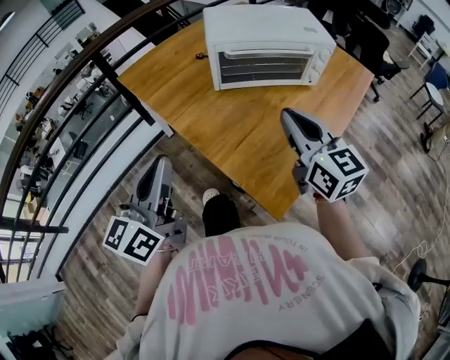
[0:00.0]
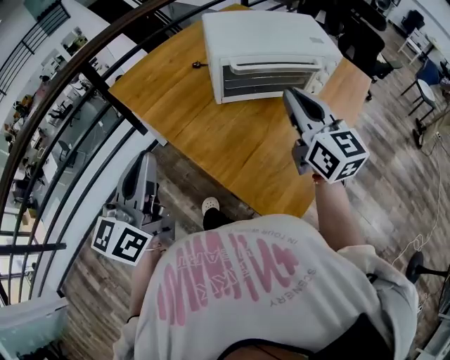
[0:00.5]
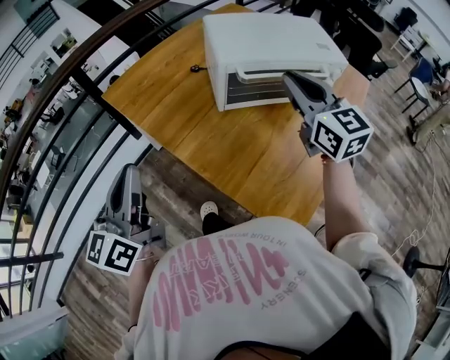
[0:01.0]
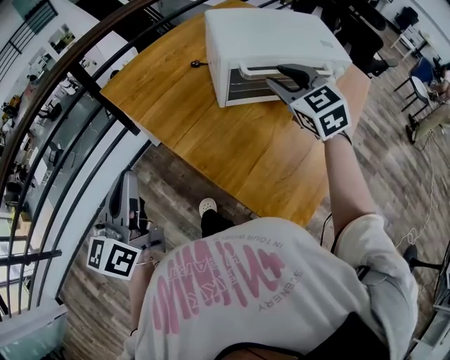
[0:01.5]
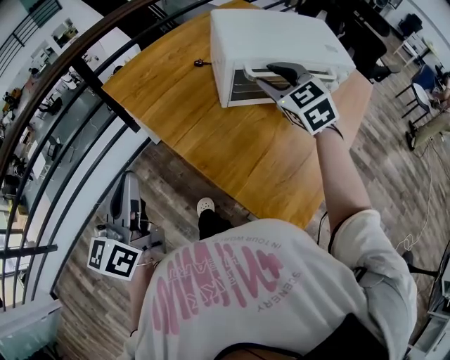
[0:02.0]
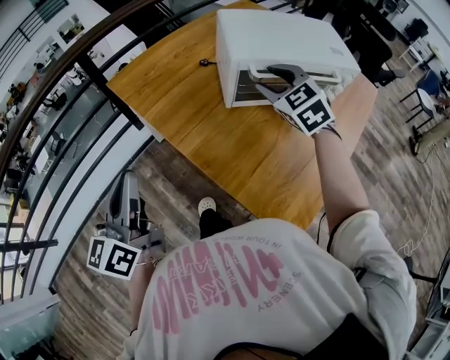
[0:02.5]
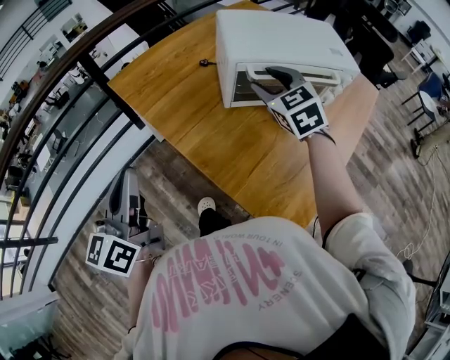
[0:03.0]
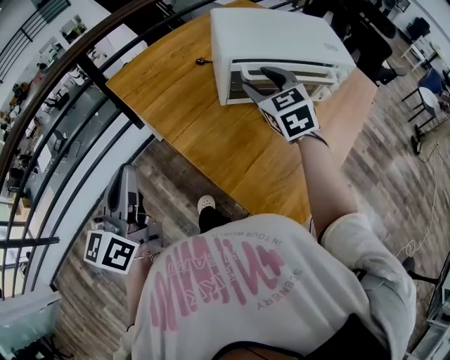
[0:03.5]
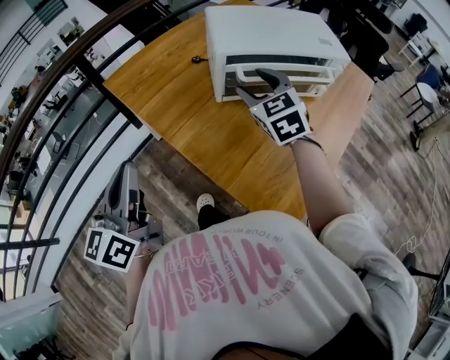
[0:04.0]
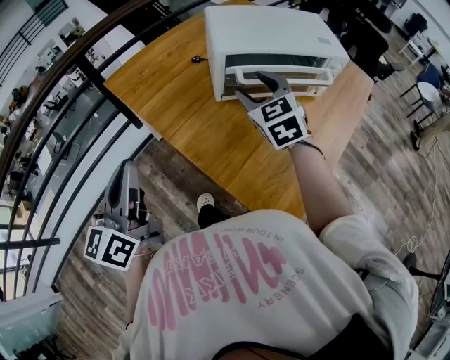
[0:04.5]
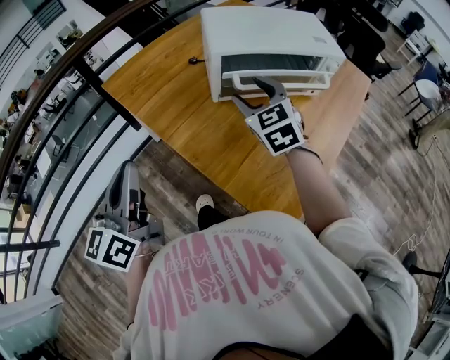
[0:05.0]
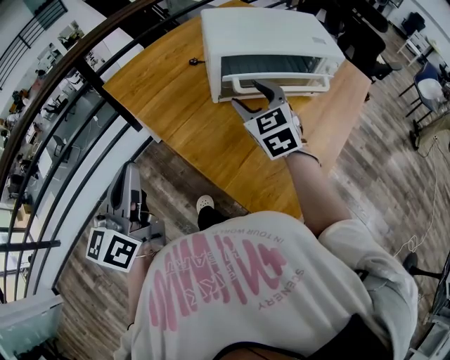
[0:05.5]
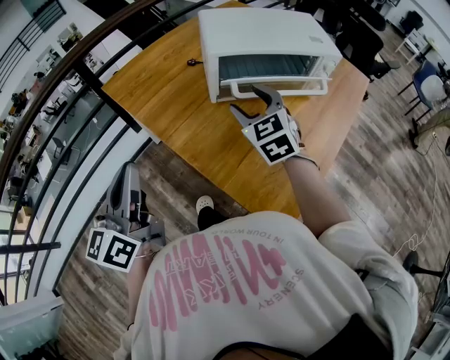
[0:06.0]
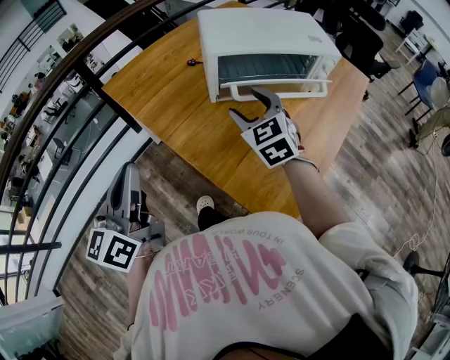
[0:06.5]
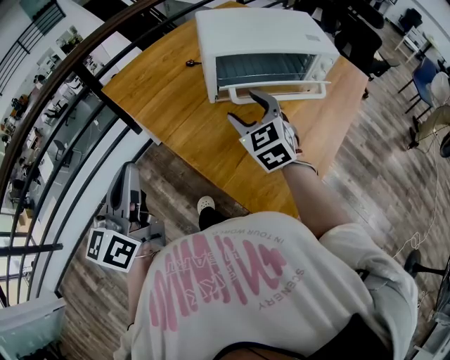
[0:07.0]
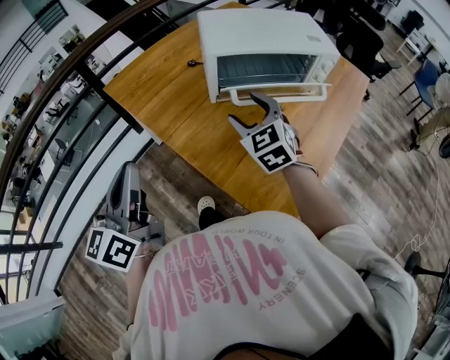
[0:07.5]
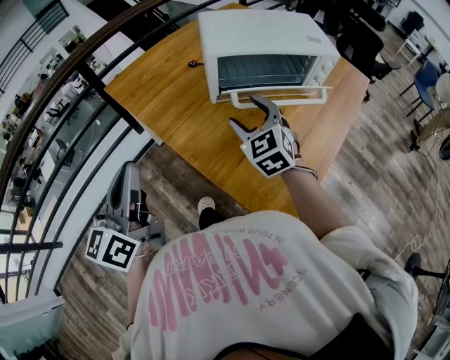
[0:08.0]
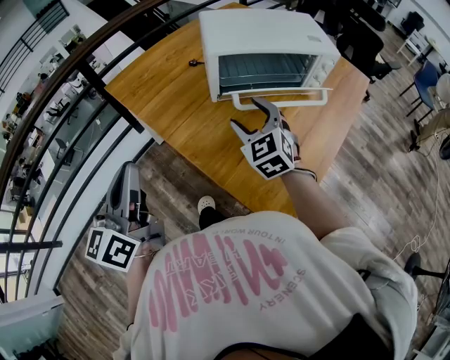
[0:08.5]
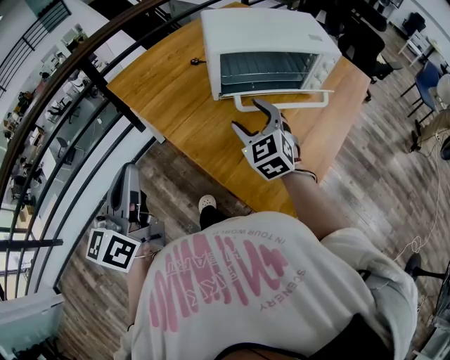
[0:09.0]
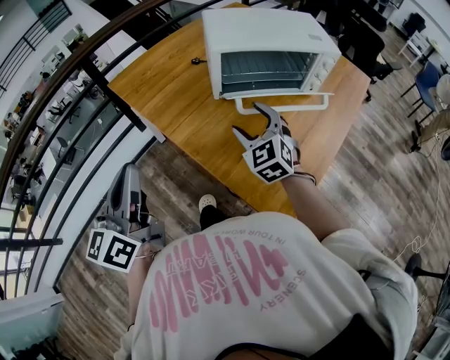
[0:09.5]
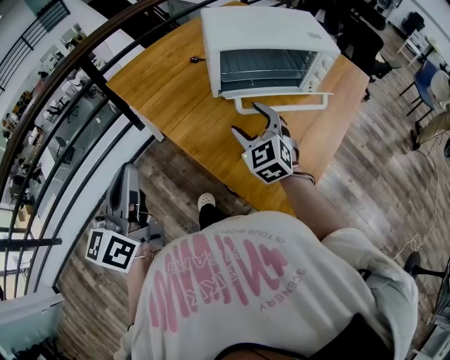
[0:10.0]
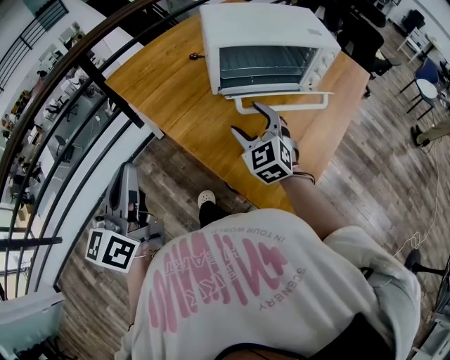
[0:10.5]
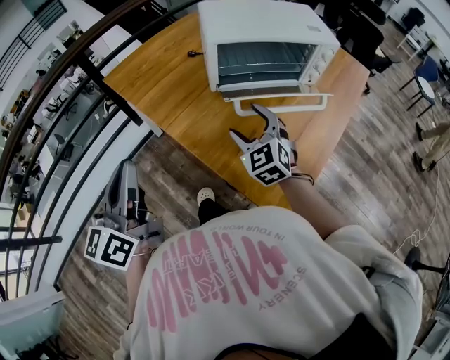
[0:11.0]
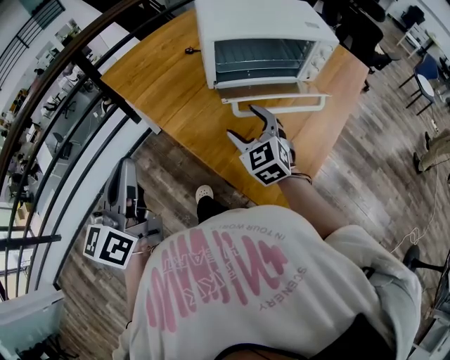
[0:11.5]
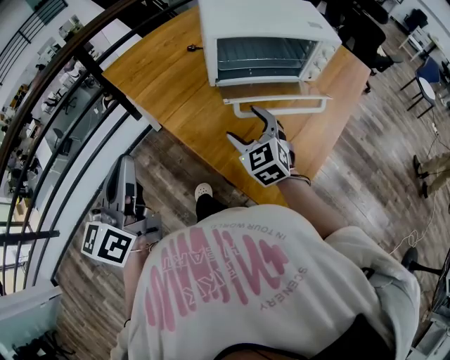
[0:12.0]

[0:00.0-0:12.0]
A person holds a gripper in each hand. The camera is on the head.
0:00.0 to 0:02.0: The right gripper goes approximately 25 cm forward, and changes its angle by roughly 40 degrees. Meanwhile the left gripper heads to the left and forward, covering roughly 15 cm.
0:02.0 to 0:04.0: There are only small adjustments of the grippers.
0:04.0 to 0:06.0: The grippers move only a little.
0:06.0 to 0:08.0: The grippers move only a little.
0:08.0 to 0:10.0: The grippers stay close to where they were, moving slightly.
0:10.0 to 0:12.0: The grippers make only small movements.

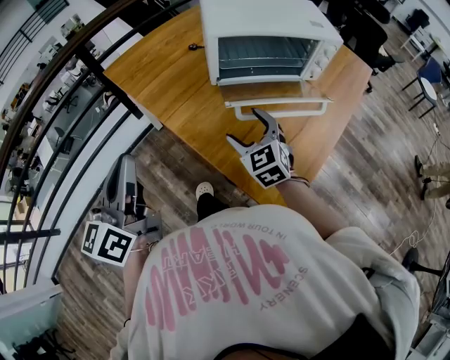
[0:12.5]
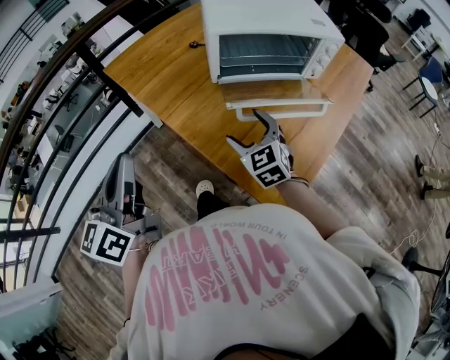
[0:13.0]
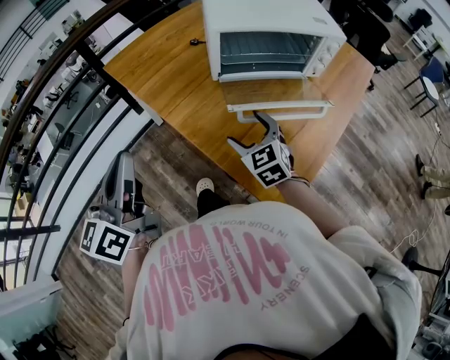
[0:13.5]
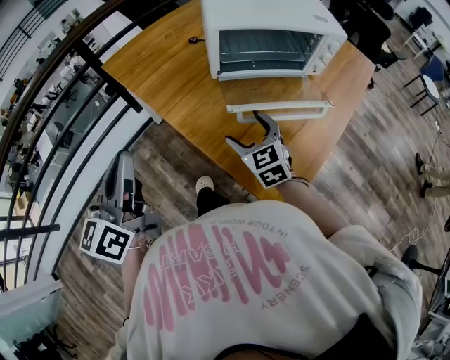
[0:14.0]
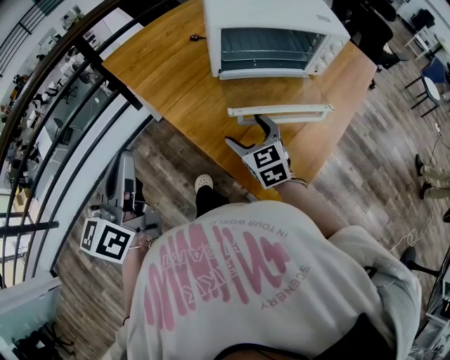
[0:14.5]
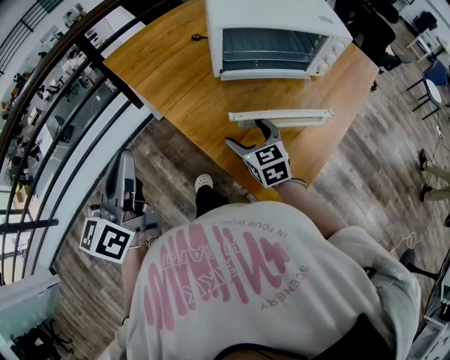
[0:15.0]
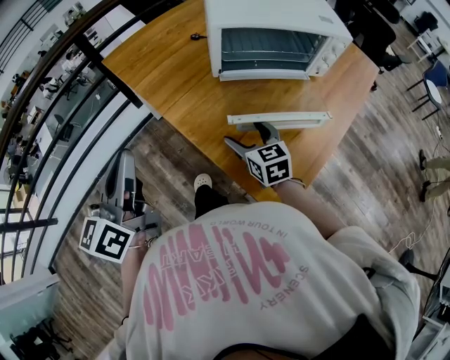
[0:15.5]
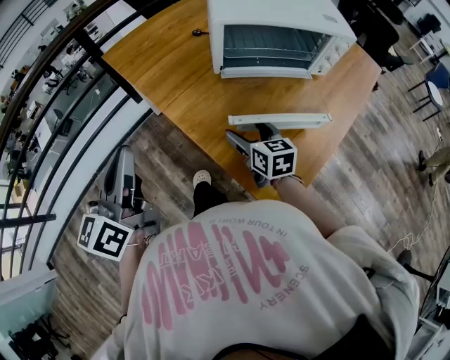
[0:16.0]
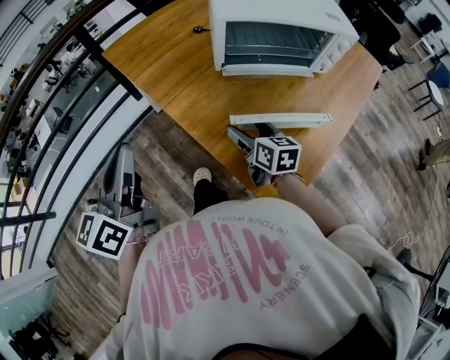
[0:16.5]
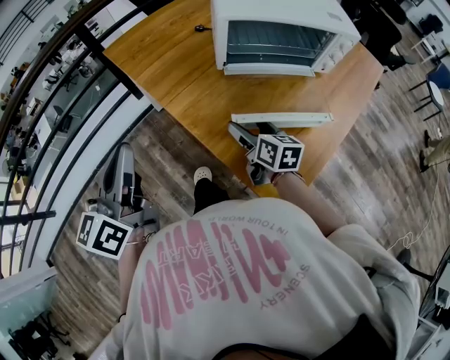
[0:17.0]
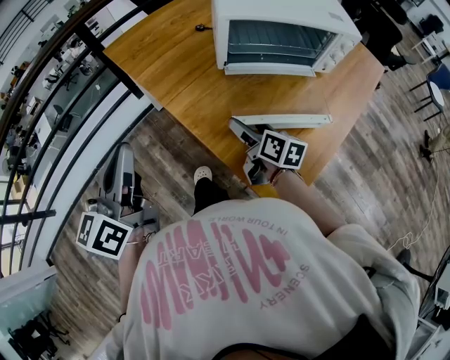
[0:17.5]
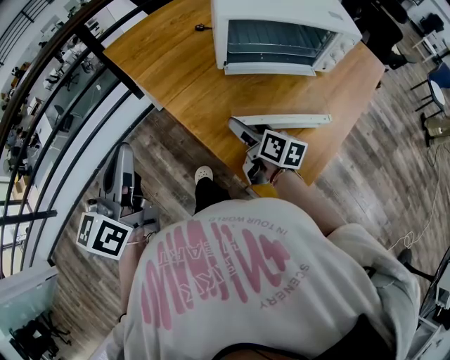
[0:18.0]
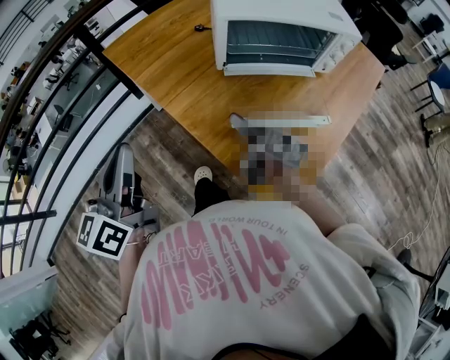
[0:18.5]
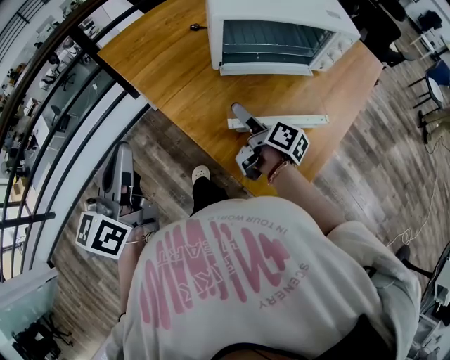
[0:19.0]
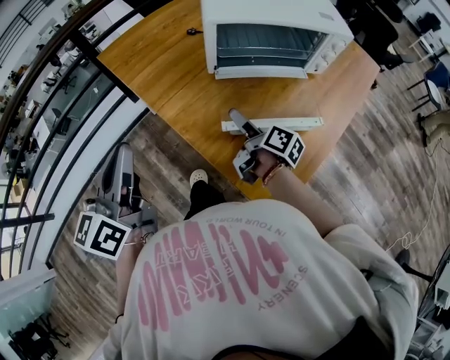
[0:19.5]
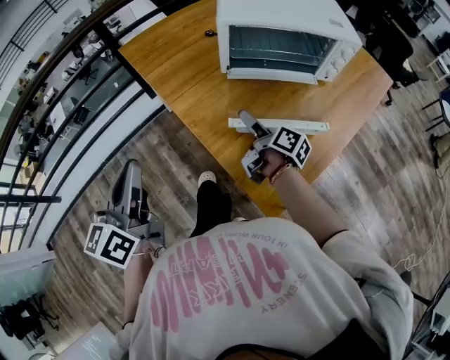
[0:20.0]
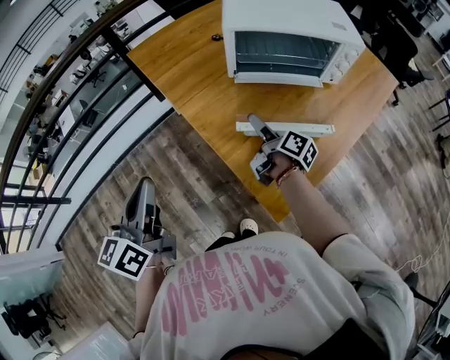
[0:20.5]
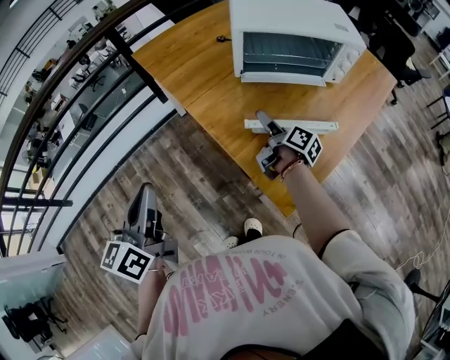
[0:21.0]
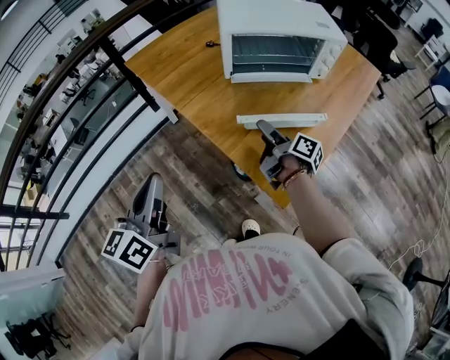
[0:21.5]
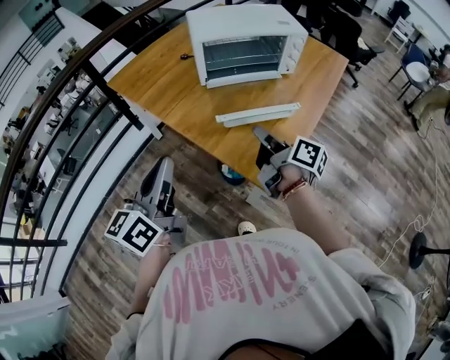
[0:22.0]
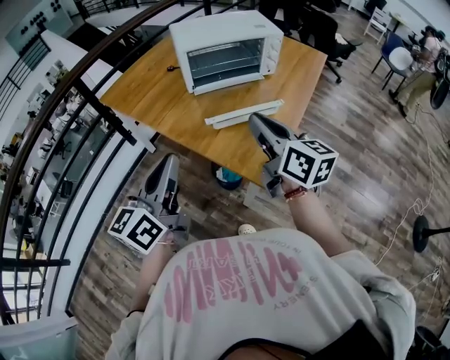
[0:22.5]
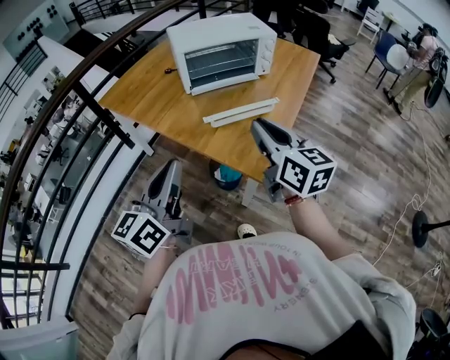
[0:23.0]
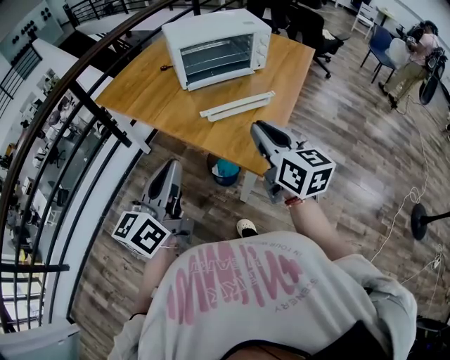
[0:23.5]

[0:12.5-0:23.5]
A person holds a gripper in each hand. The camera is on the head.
0:12.5 to 0:14.5: There are only small adjustments of the grippers.
0:14.5 to 0:16.0: The right gripper turns by approximately 30 degrees.
0:16.0 to 0:18.0: The right gripper turns by about 30 degrees.
0:18.0 to 0:20.0: The right gripper swivels approximately 30 degrees. The left gripper heads backward, covering roughly 5 cm.
0:20.0 to 0:21.5: The right gripper goes about 5 cm backward.
0:21.5 to 0:23.5: The left gripper moves to the right, some 10 cm, and swivels some 20 degrees, while the right gripper heads upward and backward, covering about 25 cm, rolls counterclockwise, seen from behind, by some 60 degrees, and closes.

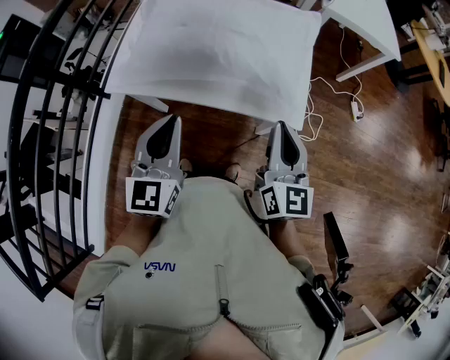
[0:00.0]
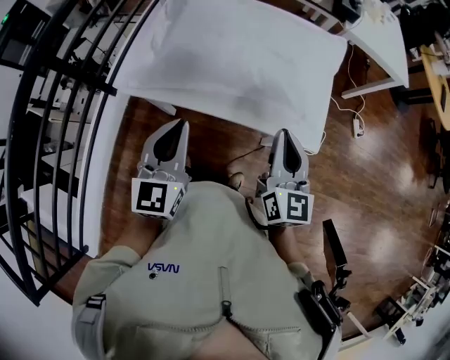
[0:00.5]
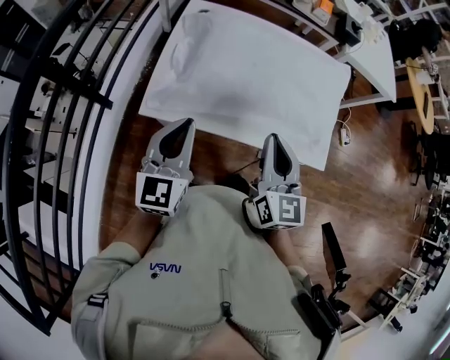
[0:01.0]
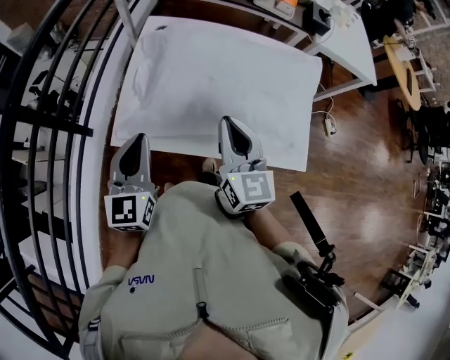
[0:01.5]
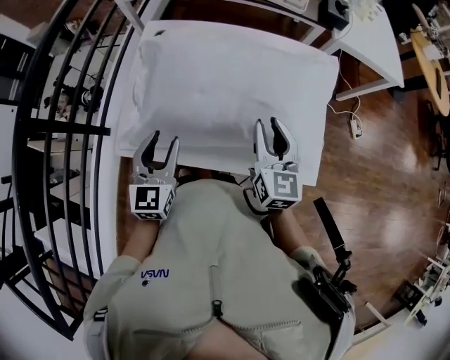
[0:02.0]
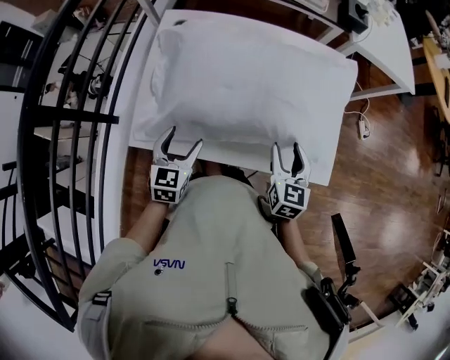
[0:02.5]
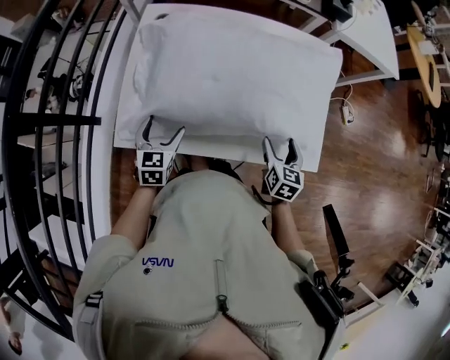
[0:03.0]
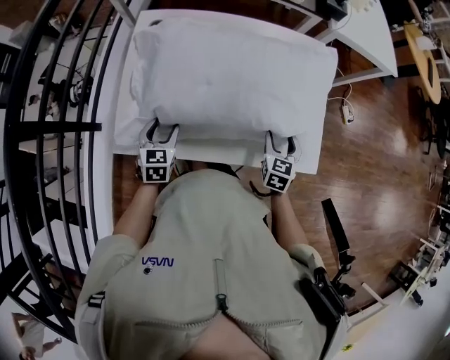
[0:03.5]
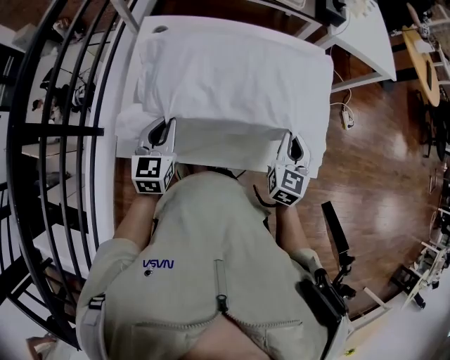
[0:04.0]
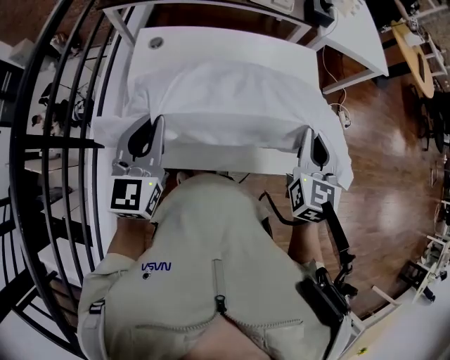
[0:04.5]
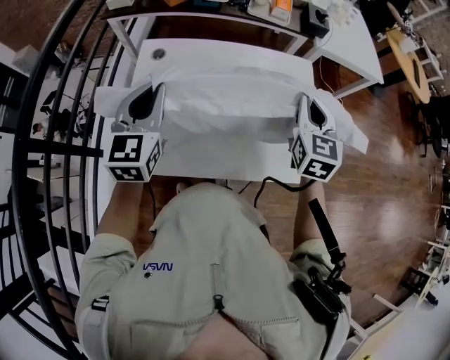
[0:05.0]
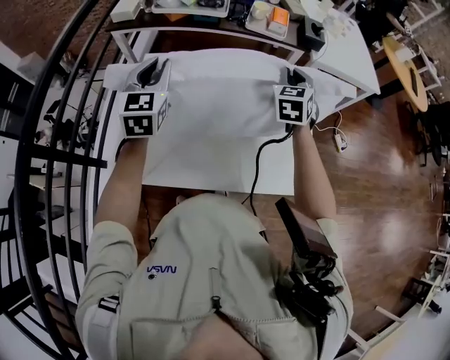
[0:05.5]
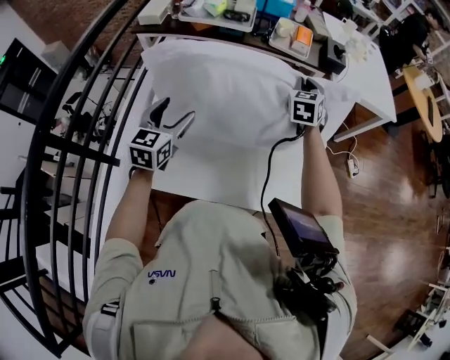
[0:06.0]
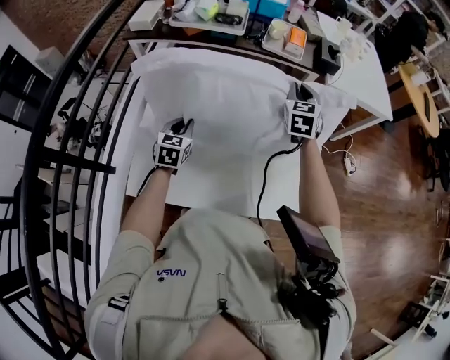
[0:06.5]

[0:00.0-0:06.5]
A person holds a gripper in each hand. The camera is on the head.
0:00.0 to 0:02.0: Both grippers travel together forward and to the left, roughly 25 cm. The right gripper opens up, while the left gripper opens up.
0:02.0 to 0:04.5: The right gripper is displaced to the right by about 5 cm, goes downward and returns, some 15 cm each way, and opens, then closes again, while the left gripper is displaced upward by some 10 cm, and closes.
0:04.5 to 0:06.5: The left gripper travels downward and forward by some 25 cm, rotates about 20 degrees, and opens and closes again. Meanwhile the right gripper shifts approximately 30 cm forward.
